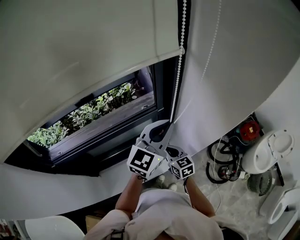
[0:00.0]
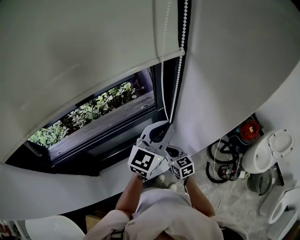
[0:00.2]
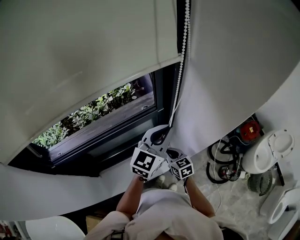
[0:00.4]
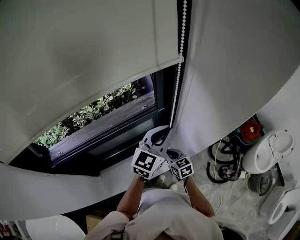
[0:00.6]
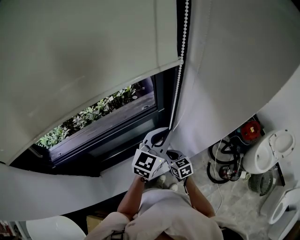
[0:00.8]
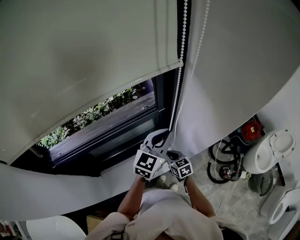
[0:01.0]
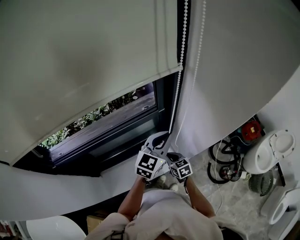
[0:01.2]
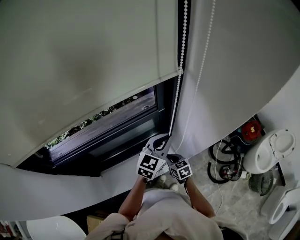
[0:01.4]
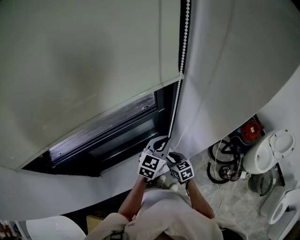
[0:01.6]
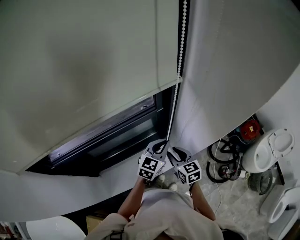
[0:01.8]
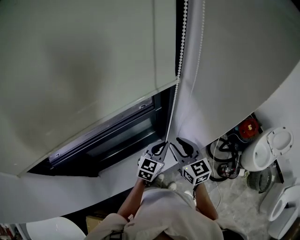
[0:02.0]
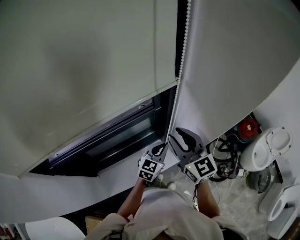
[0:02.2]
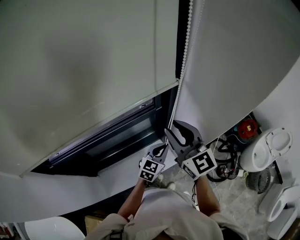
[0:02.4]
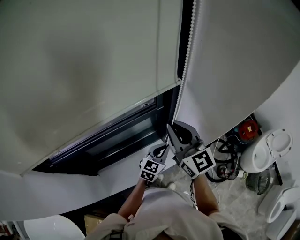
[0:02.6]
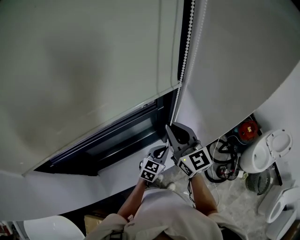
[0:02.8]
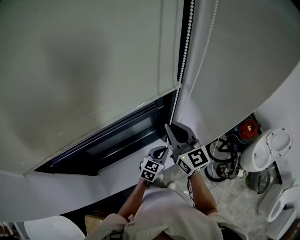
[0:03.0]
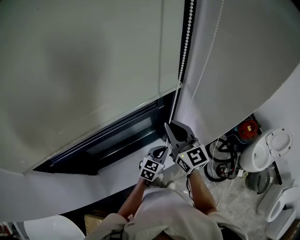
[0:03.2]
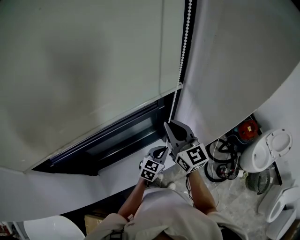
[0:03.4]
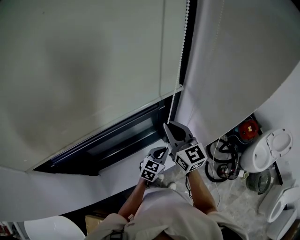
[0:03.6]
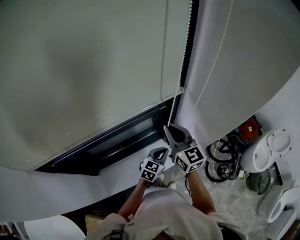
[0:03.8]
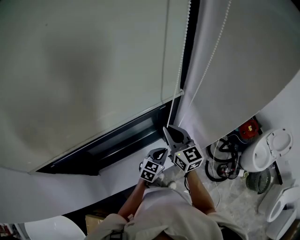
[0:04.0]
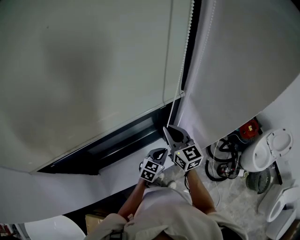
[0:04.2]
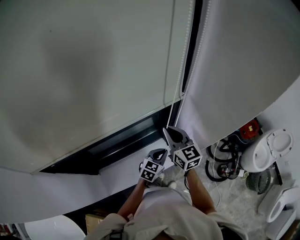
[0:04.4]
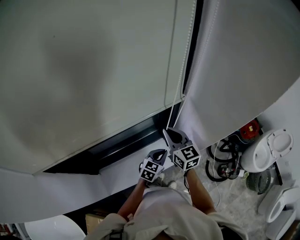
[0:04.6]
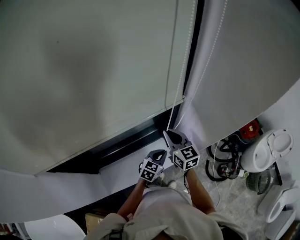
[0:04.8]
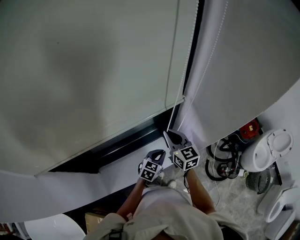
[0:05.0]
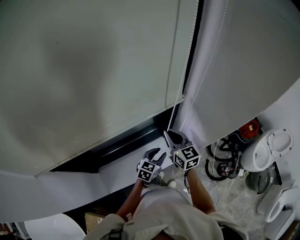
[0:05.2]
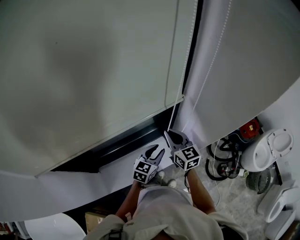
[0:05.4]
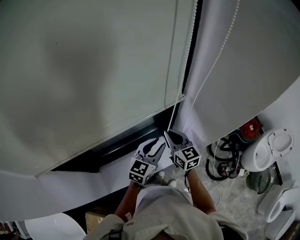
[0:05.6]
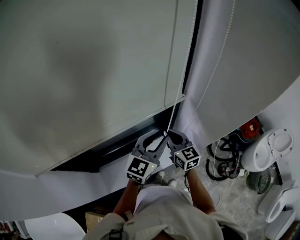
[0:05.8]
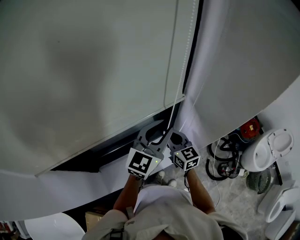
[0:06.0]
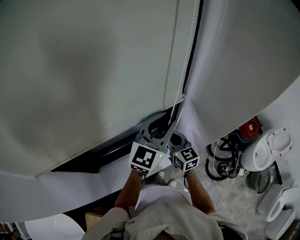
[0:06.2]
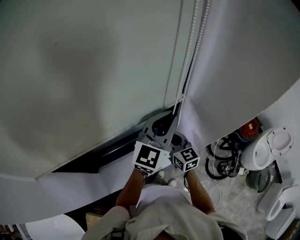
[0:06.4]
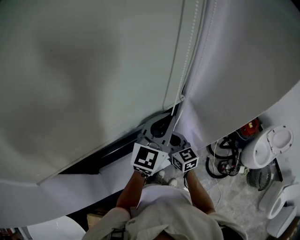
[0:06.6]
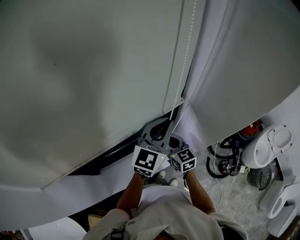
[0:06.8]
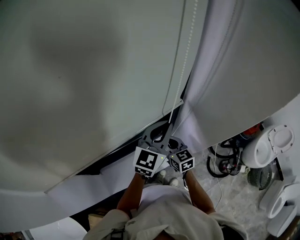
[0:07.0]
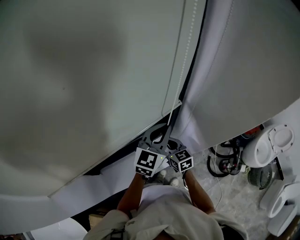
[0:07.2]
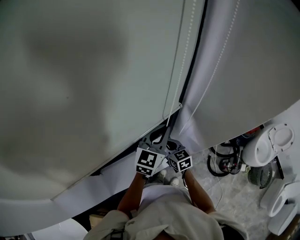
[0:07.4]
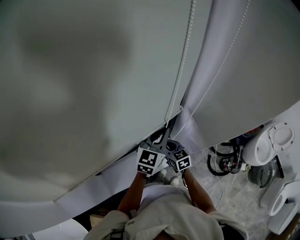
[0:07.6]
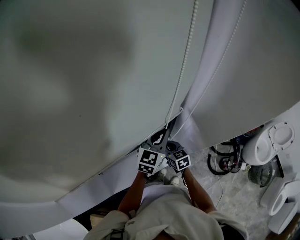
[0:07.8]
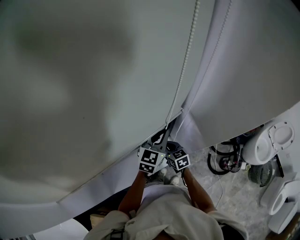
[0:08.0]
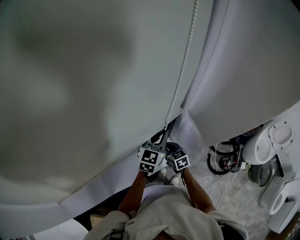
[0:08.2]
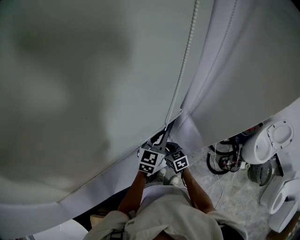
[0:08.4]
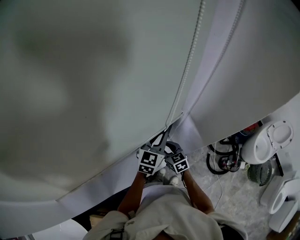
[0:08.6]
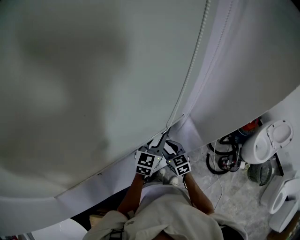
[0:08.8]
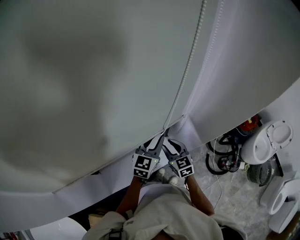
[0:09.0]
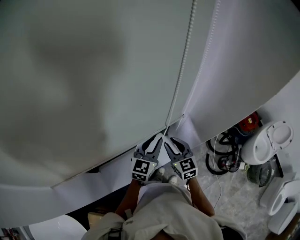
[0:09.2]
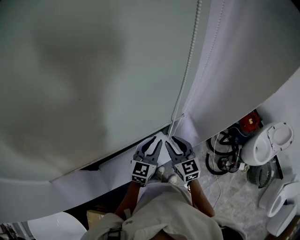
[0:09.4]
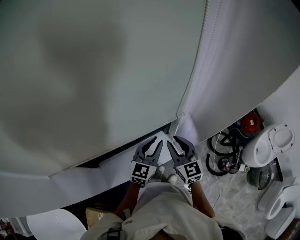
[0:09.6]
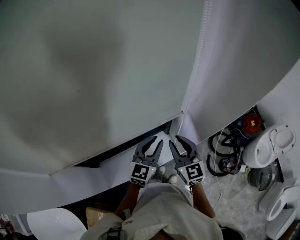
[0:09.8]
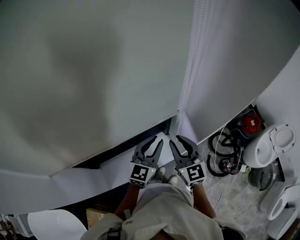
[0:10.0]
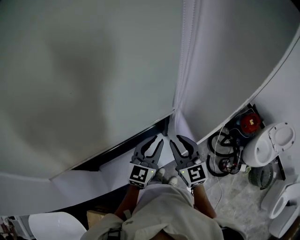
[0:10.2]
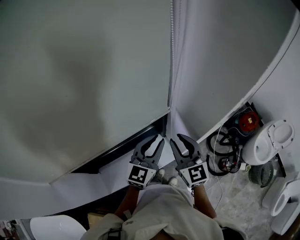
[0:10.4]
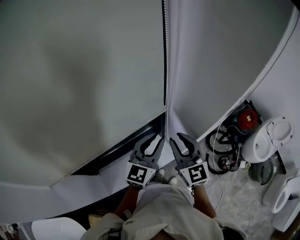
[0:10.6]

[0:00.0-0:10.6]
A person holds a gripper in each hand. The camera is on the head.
0:00.0 to 0:01.6: The left gripper shifts approximately 15 cm downward. Meanwhile the right gripper shifts approximately 5 cm downward, and opens.
0:01.6 to 0:03.0: The left gripper travels downward by approximately 10 cm, while the right gripper goes roughly 30 cm upward, tips its fingers upward by roughly 40 degrees, and closes up.
0:03.0 to 0:04.6: The right gripper goes some 10 cm downward.
0:04.6 to 0:06.0: The left gripper shifts roughly 30 cm upward, swivels approximately 30 degrees, and opens.
0:06.0 to 0:07.6: The two grippers go approximately 10 cm downward. The left gripper closes its fingers.
0:07.6 to 0:09.0: The left gripper shifts by approximately 5 cm, while the right gripper ends up roughly 5 cm from where it was, and opens its fingers.
0:09.0 to 0:10.6: The right gripper is displaced upward by about 20 cm, and rotates approximately 20 degrees. Meanwhile the left gripper is displaced upward by roughly 10 cm.

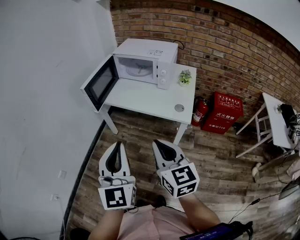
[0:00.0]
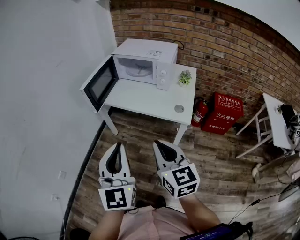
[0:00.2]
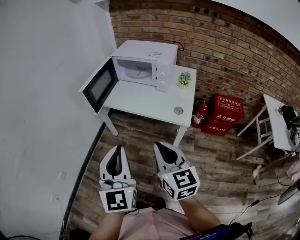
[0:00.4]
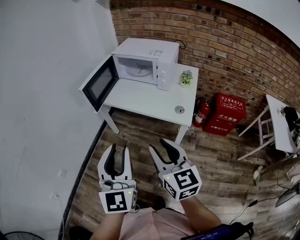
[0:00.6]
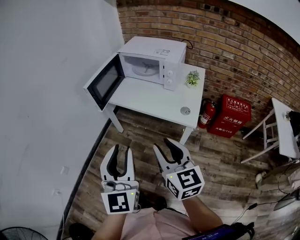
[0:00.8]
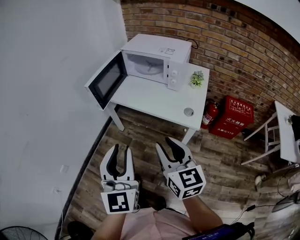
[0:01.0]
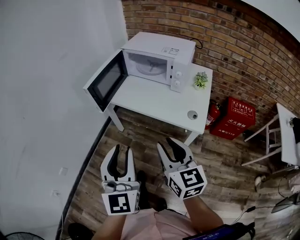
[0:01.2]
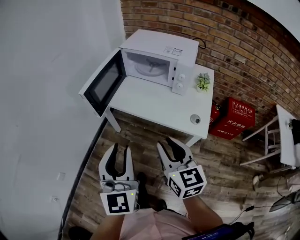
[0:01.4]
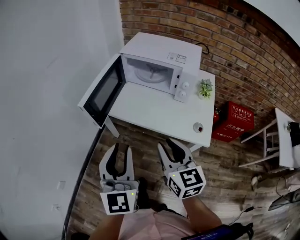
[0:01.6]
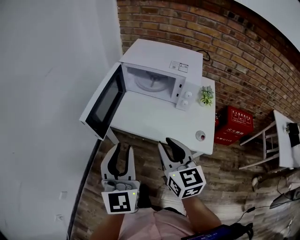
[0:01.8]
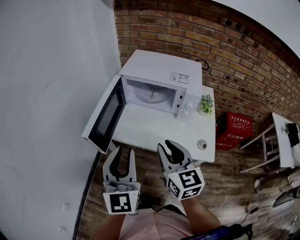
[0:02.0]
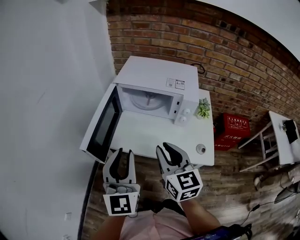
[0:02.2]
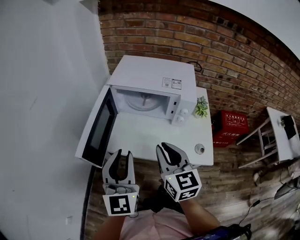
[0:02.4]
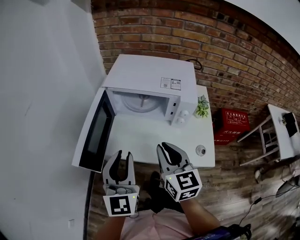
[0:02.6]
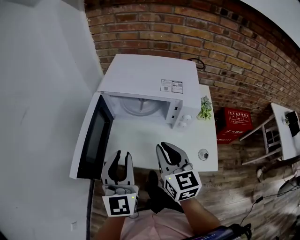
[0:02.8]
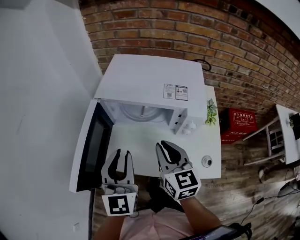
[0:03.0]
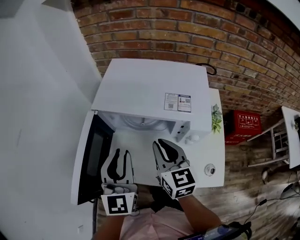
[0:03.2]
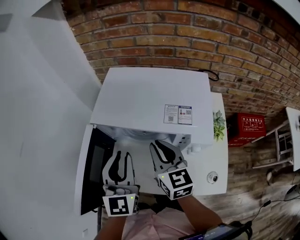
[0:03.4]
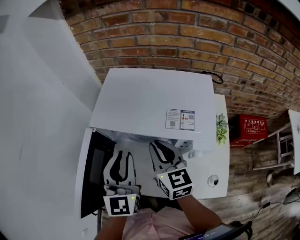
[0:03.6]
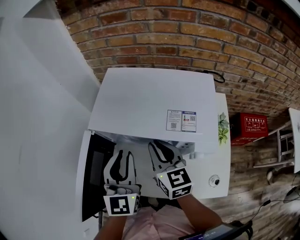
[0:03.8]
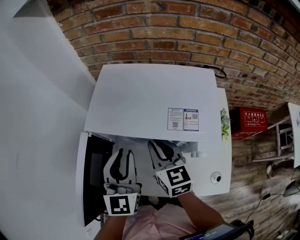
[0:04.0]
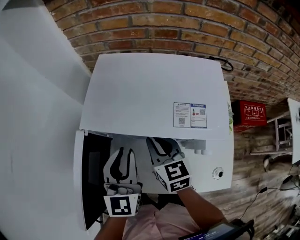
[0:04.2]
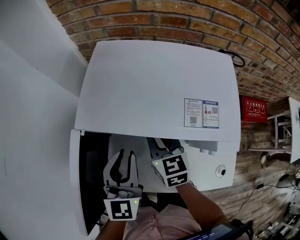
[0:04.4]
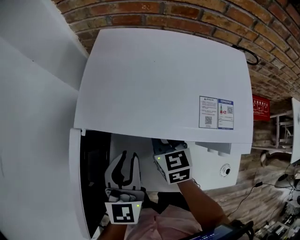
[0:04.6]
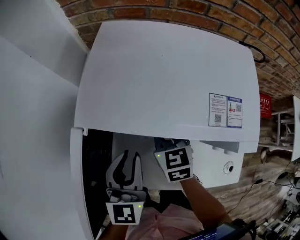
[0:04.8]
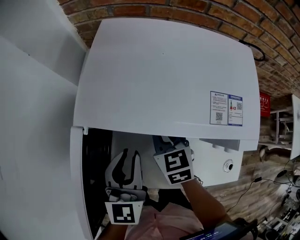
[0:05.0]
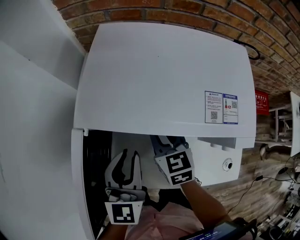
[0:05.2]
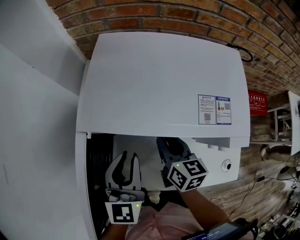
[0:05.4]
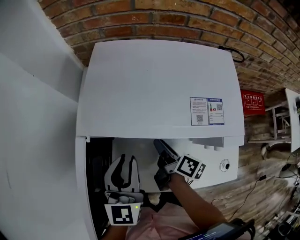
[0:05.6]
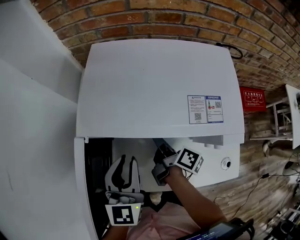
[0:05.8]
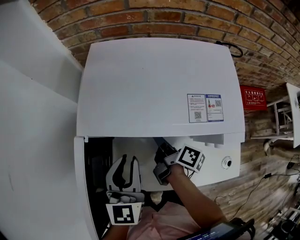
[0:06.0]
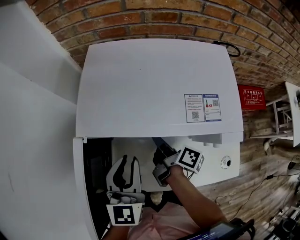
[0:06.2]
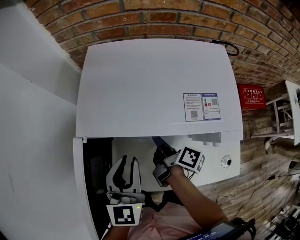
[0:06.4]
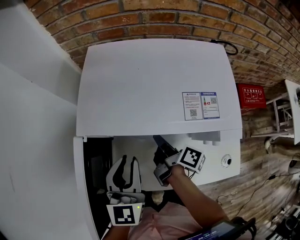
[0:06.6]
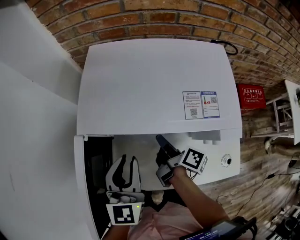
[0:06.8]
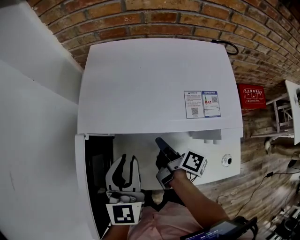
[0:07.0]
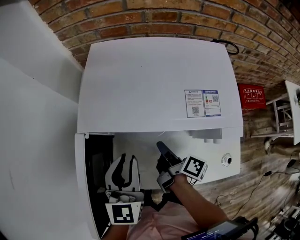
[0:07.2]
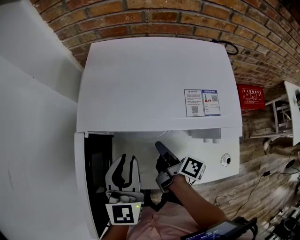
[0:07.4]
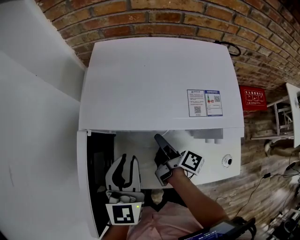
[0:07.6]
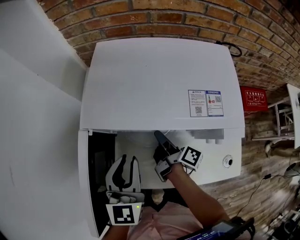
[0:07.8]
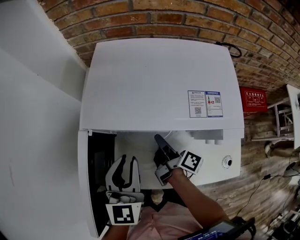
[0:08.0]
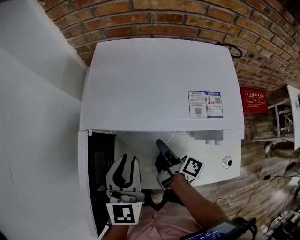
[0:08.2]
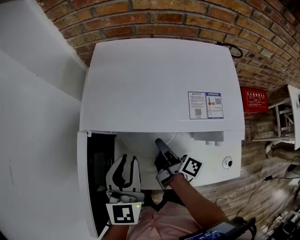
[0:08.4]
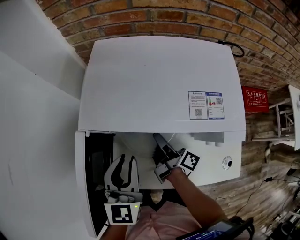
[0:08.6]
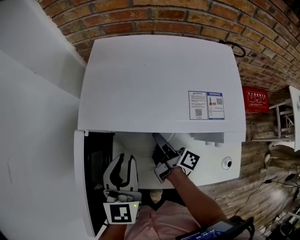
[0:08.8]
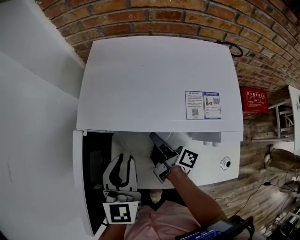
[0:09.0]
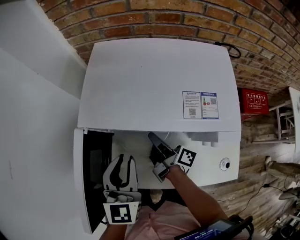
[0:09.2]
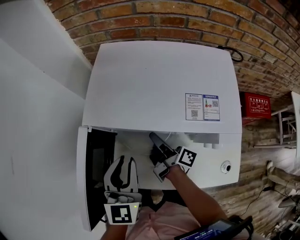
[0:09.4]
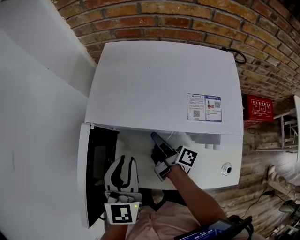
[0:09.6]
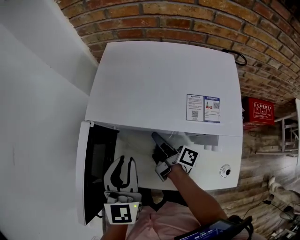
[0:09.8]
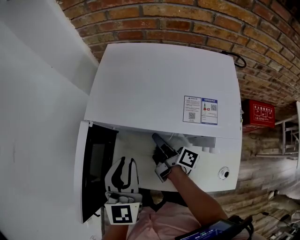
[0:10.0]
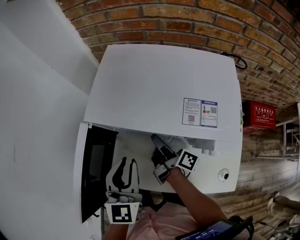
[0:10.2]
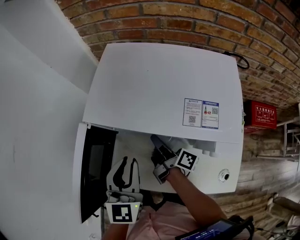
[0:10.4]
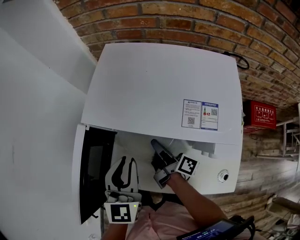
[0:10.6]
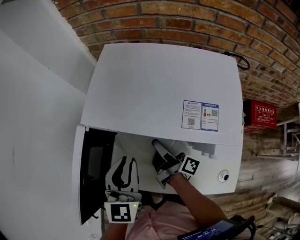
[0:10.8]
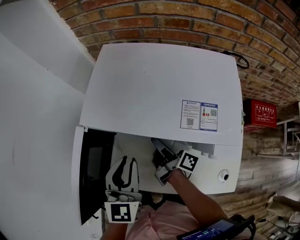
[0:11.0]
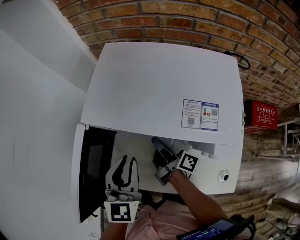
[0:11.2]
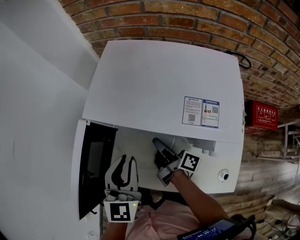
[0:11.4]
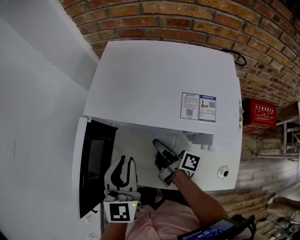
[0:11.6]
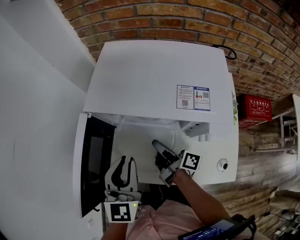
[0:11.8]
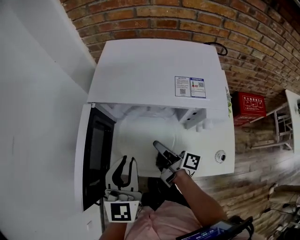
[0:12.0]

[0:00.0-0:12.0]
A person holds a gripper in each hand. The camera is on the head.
0:00.0 to 0:01.6: Both grippers travel together forward, some 20 cm. The right gripper opens up; the left gripper opens up.
0:01.6 to 0:03.0: The two grippers go approximately 25 cm forward.
0:03.0 to 0:04.4: The two grippers go roughly 20 cm forward and downward.
0:04.4 to 0:06.0: The right gripper travels downward by about 5 cm, and rolls clockwise, seen from behind, by approximately 80 degrees.
0:06.0 to 0:07.6: The right gripper closes, then opens again.
0:07.6 to 0:09.0: The right gripper closes its fingers.
0:09.0 to 0:10.4: The right gripper opens, then closes again.
0:10.4 to 0:12.0: Both grippers move backward, about 10 cm. The right gripper opens, then closes again.

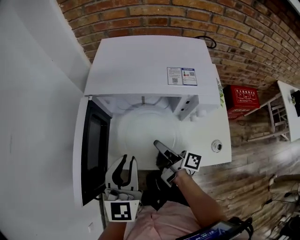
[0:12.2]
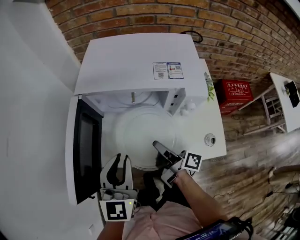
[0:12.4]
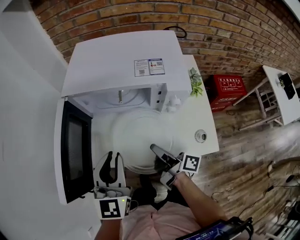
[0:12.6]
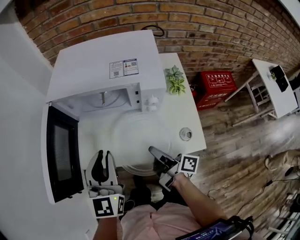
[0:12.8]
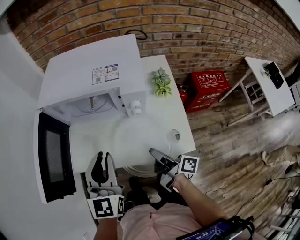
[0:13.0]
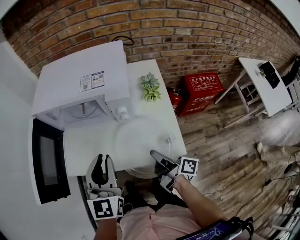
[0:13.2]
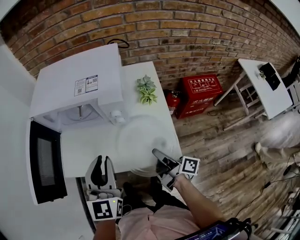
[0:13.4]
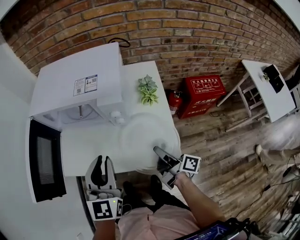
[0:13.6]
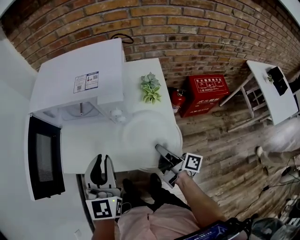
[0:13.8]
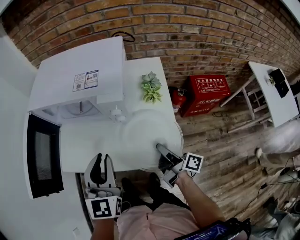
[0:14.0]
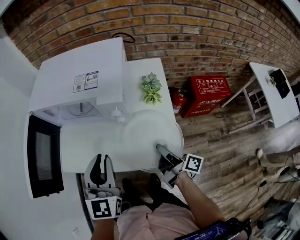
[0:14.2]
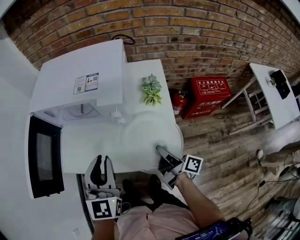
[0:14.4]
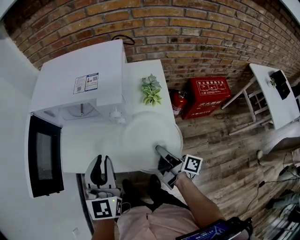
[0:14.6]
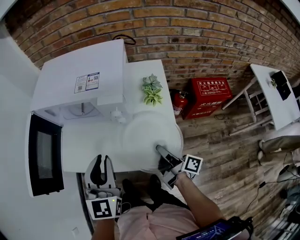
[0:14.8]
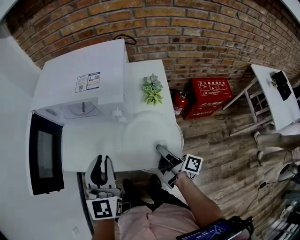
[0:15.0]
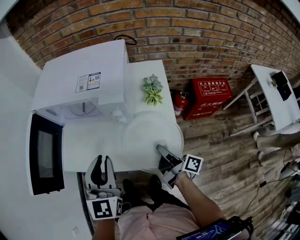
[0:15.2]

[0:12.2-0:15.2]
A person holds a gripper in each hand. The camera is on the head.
0:12.2 to 0:13.8: The grippers both shift to the right by about 25 cm.
0:13.8 to 0:15.2: Both grippers stay about where they are.
